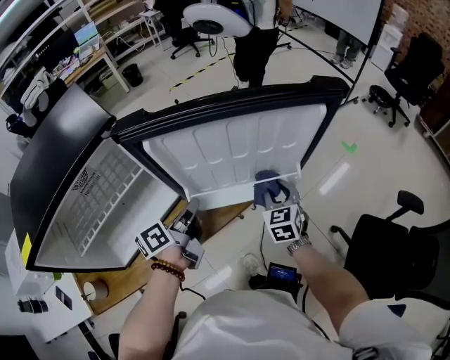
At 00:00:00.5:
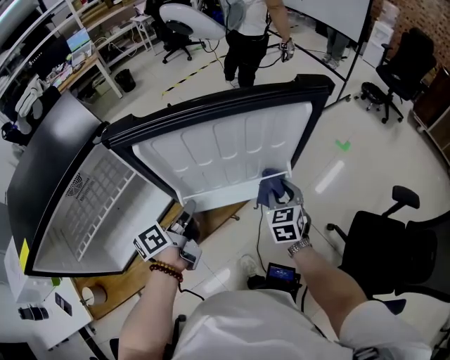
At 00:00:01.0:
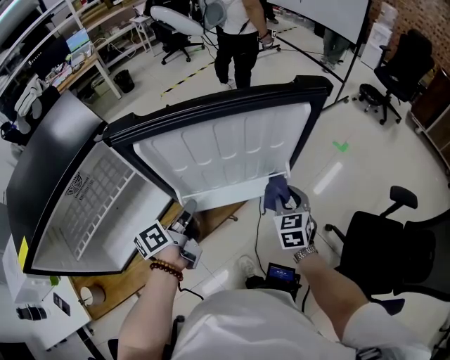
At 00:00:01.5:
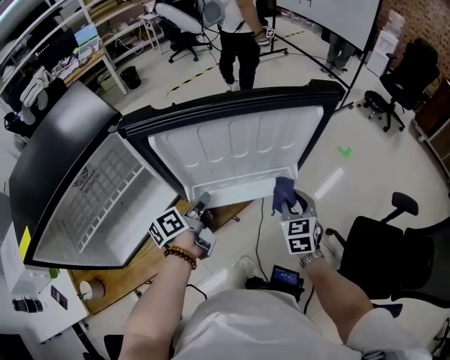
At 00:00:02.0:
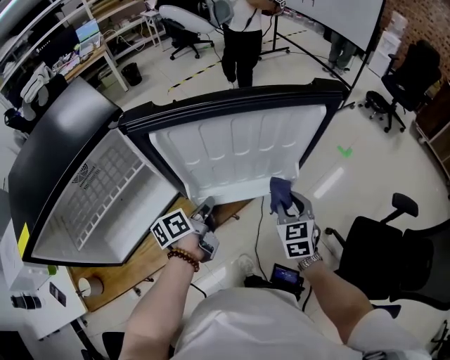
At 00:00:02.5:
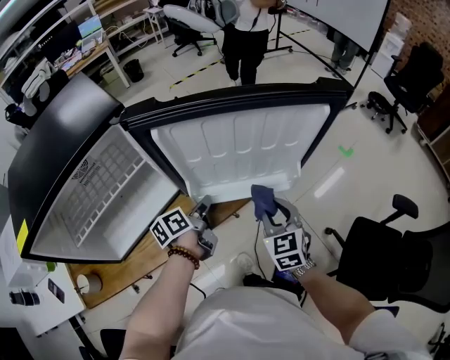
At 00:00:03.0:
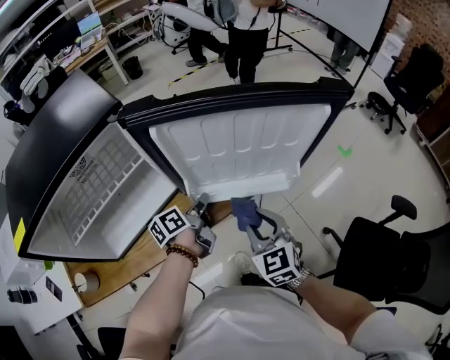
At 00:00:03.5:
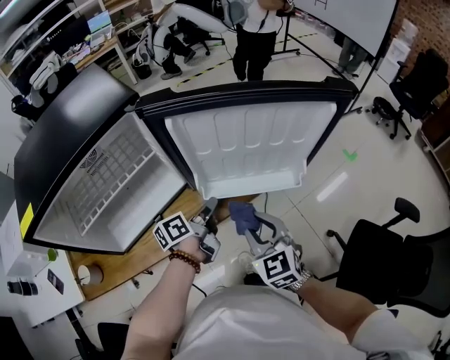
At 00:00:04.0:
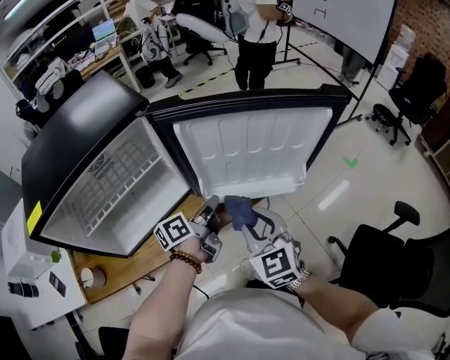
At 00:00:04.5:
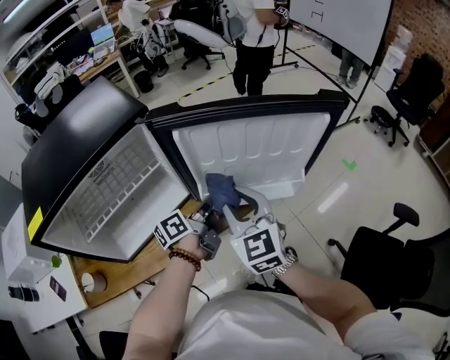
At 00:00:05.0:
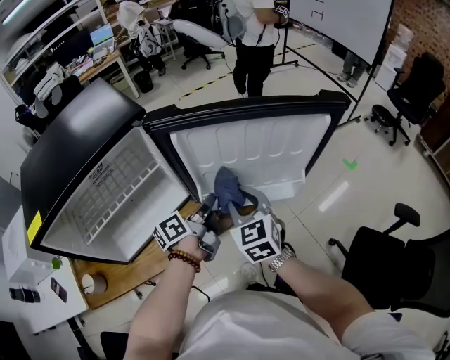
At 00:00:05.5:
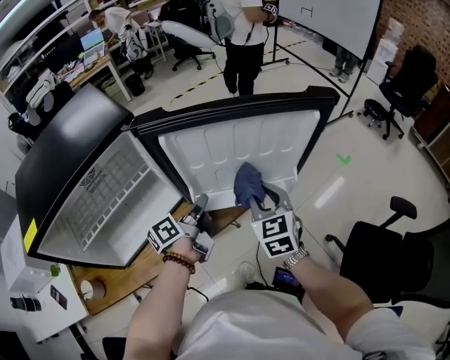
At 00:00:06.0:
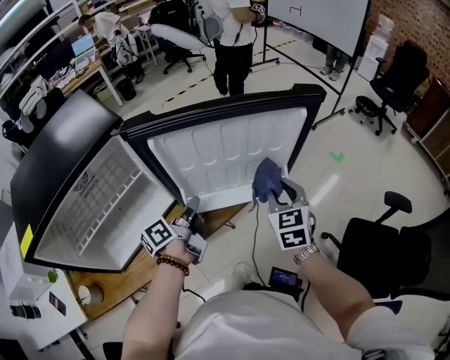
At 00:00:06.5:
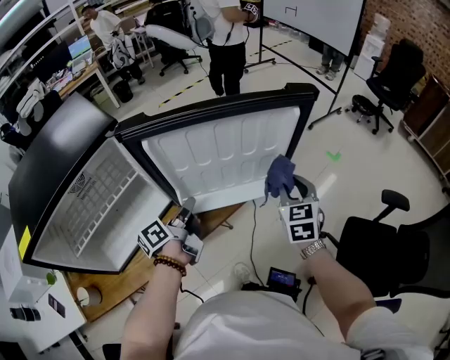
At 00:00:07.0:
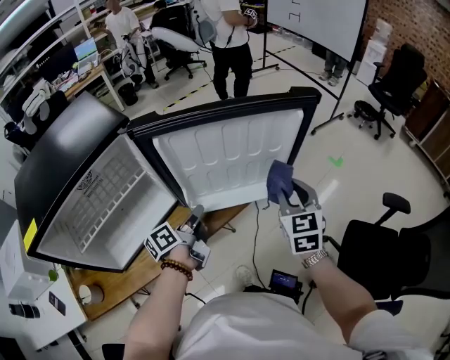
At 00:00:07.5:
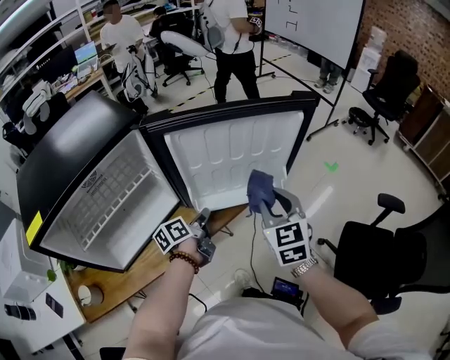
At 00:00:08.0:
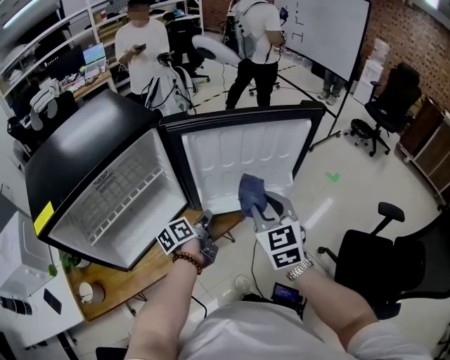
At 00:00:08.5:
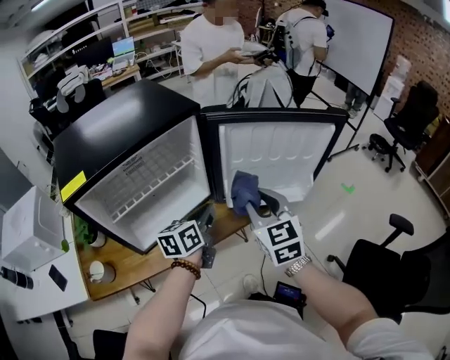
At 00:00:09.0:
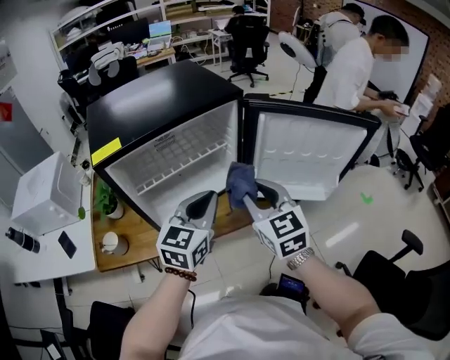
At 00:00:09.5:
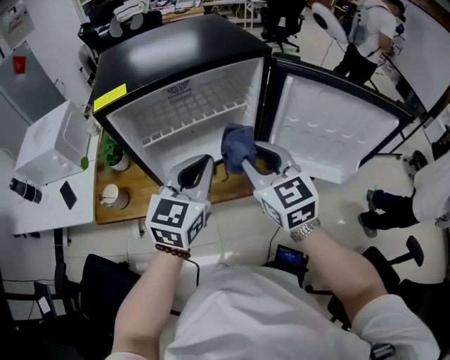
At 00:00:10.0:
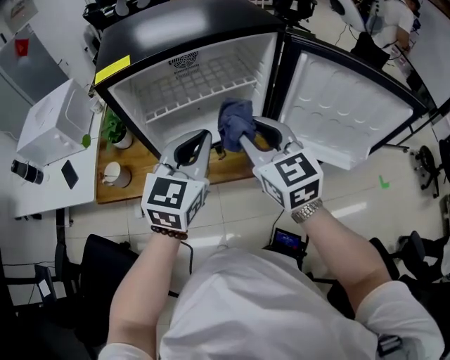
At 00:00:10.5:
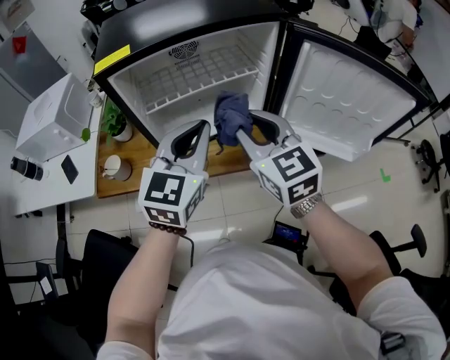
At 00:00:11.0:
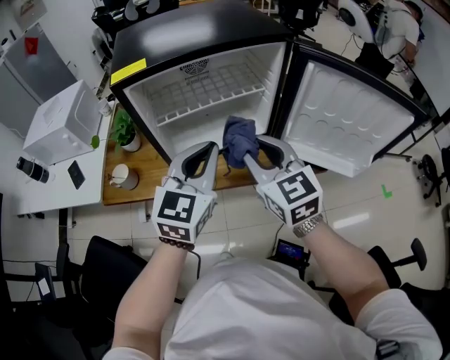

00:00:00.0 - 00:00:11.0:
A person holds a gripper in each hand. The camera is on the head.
00:00:00.0 - 00:00:02.0: The right gripper moves approximately 5 cm, while the left gripper goes some 5 cm downward.
00:00:02.0 - 00:00:03.5: The right gripper heads to the left and backward, covering some 15 cm, and turns by roughly 30 degrees.
00:00:03.5 - 00:00:05.5: The right gripper is displaced forward by roughly 10 cm, while the left gripper shifts about 5 cm upward.
00:00:05.5 - 00:00:07.5: The left gripper shifts approximately 5 cm downward. The right gripper shifts some 5 cm upward, and moves roughly 15 cm to the right and comes back.
00:00:07.5 - 00:00:09.0: The right gripper is displaced to the left by approximately 25 cm, and turns by some 30 degrees. The left gripper shifts some 30 cm upward, backward and to the left, and twists some 60 degrees clockwise, seen from behind.
00:00:09.0 - 00:00:11.0: Both grippers travel together to the left, roughly 5 cm.

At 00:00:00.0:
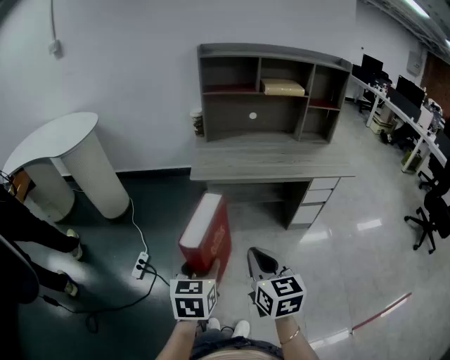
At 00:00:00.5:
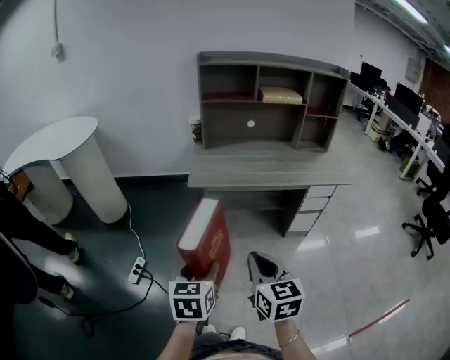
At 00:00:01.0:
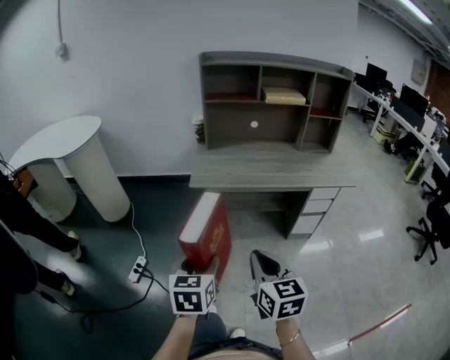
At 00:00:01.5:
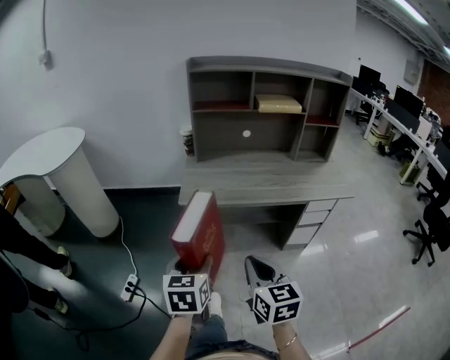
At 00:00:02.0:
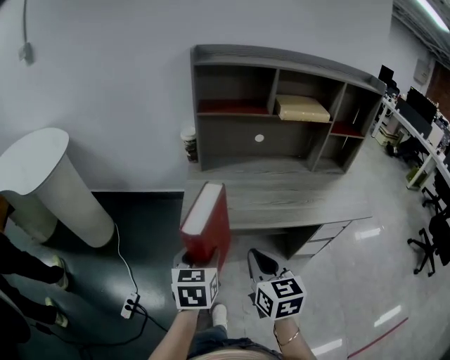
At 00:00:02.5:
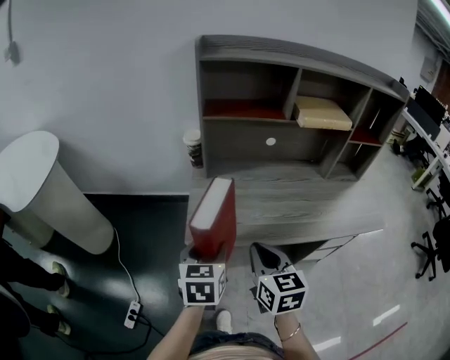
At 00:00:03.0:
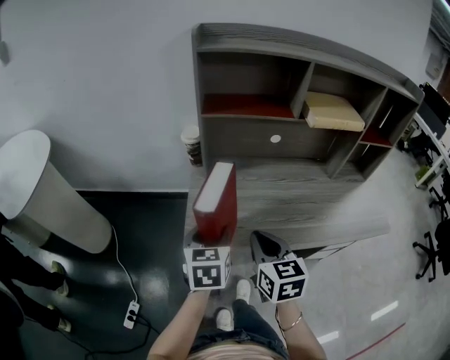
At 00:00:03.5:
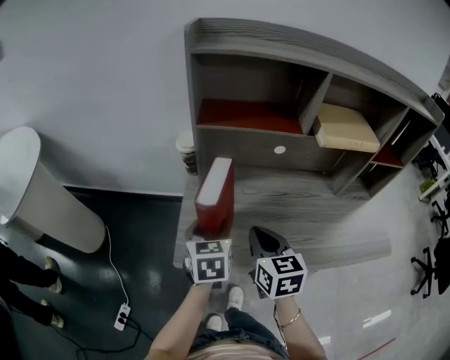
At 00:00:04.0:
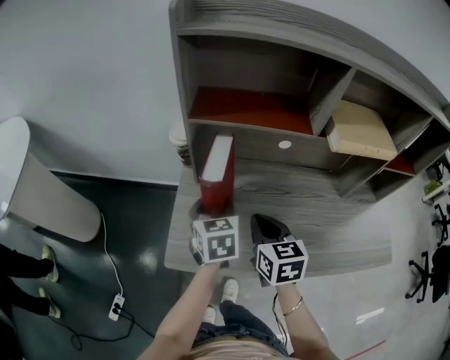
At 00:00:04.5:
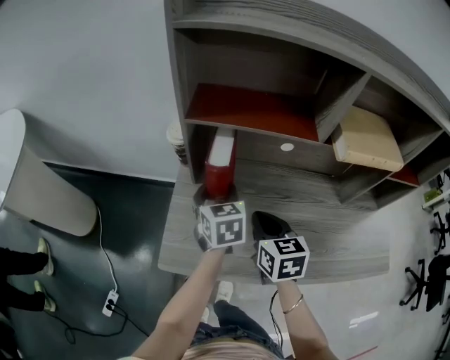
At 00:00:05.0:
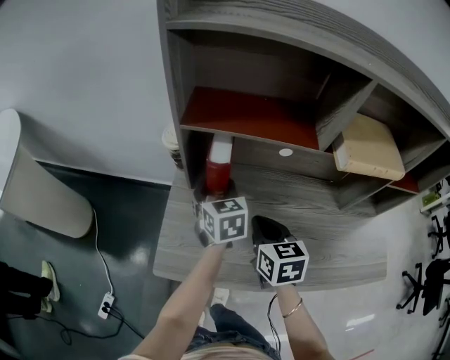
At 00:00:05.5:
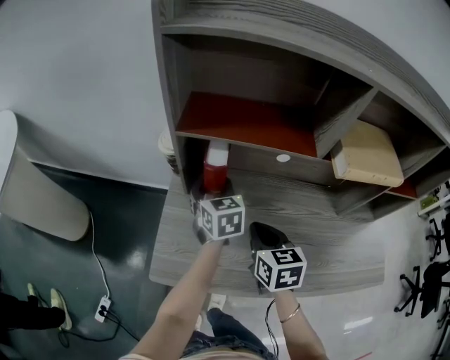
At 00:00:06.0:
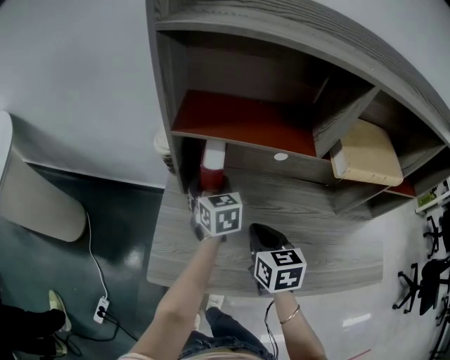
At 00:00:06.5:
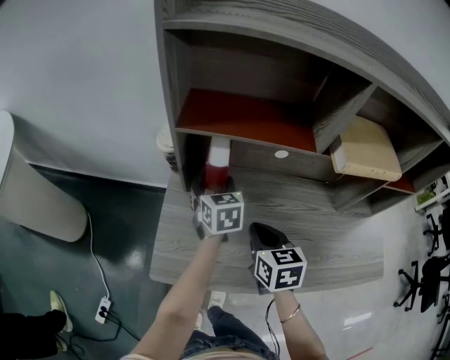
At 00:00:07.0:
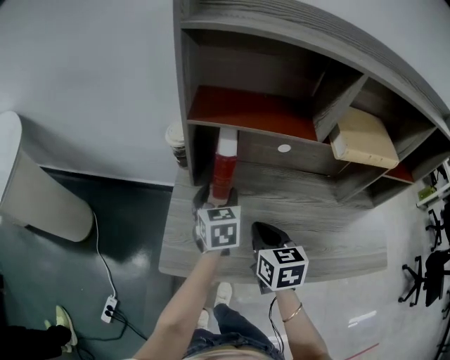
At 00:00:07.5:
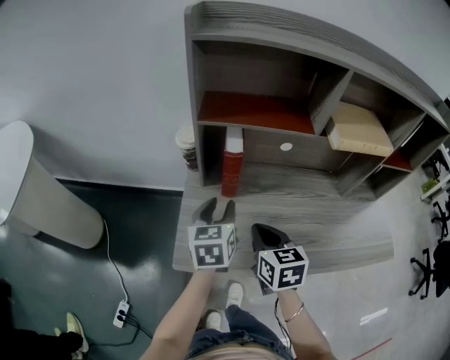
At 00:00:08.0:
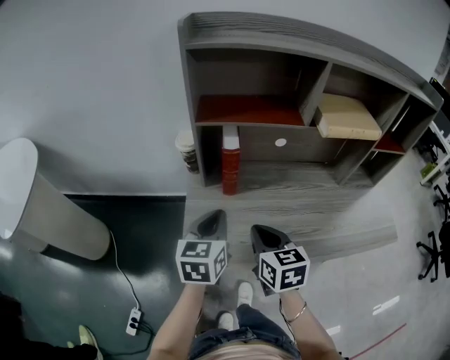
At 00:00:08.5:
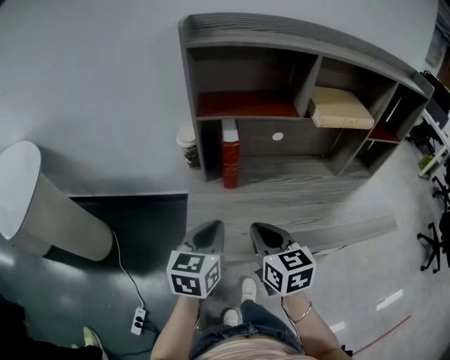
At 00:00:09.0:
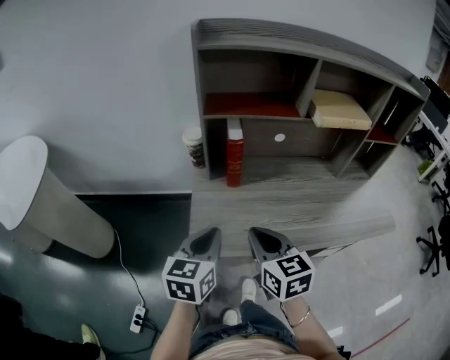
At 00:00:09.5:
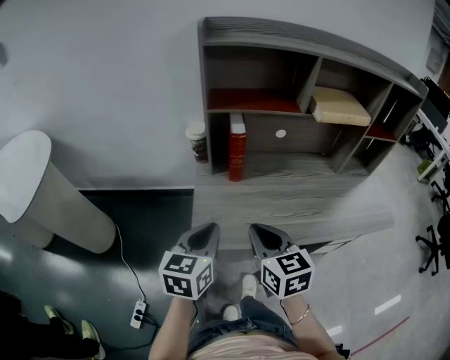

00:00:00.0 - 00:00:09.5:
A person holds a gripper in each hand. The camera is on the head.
00:00:00.0 - 00:00:02.0: The two grippers go about 25 cm forward.
00:00:02.0 - 00:00:04.0: Both grippers move forward, some 30 cm.
00:00:04.0 - 00:00:05.5: The left gripper shifts approximately 10 cm forward; the right gripper moves about 5 cm.
00:00:05.5 - 00:00:07.5: The left gripper goes roughly 10 cm backward; the right gripper is displaced backward and to the left by approximately 10 cm.
00:00:07.5 - 00:00:09.5: The right gripper travels backward, upward and to the left by approximately 15 cm; the left gripper is displaced backward by approximately 15 cm, and closes its fingers.

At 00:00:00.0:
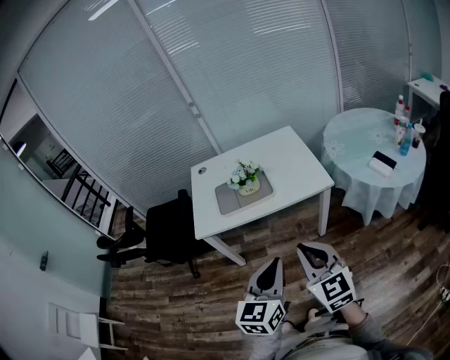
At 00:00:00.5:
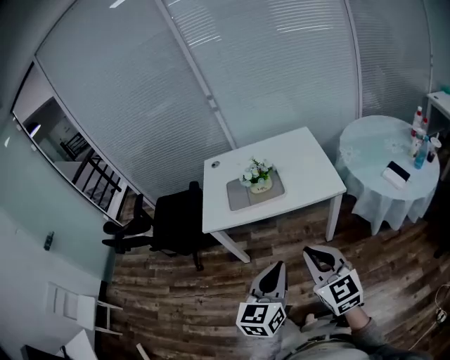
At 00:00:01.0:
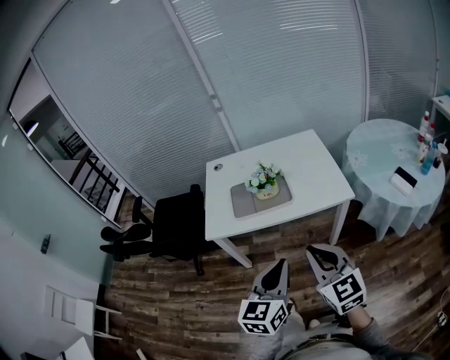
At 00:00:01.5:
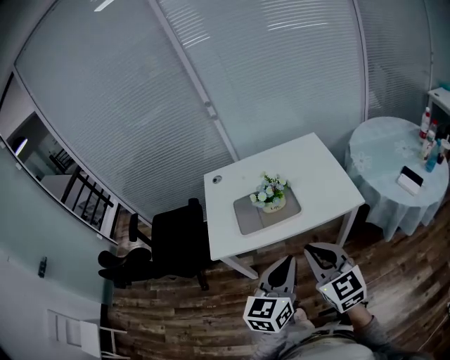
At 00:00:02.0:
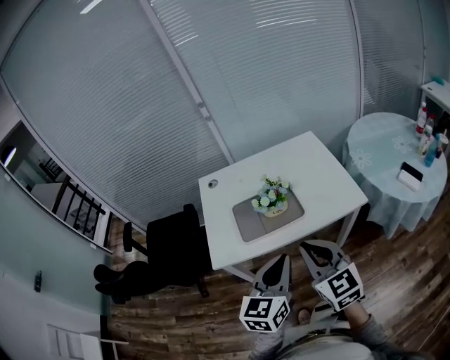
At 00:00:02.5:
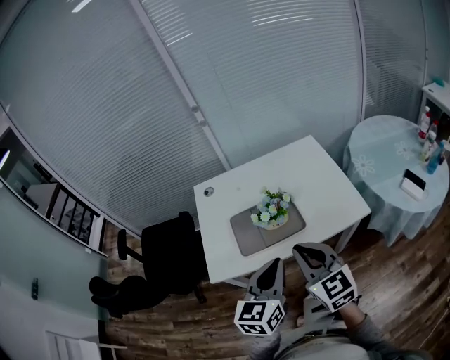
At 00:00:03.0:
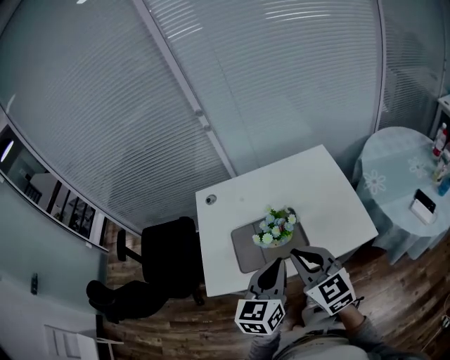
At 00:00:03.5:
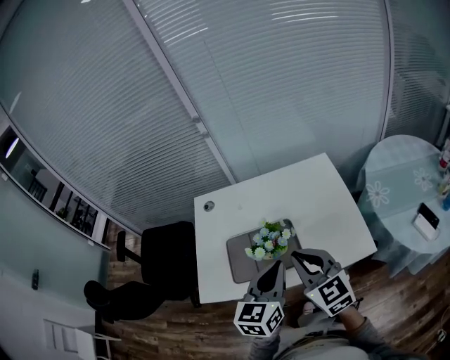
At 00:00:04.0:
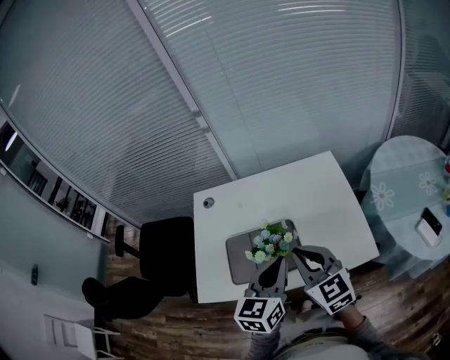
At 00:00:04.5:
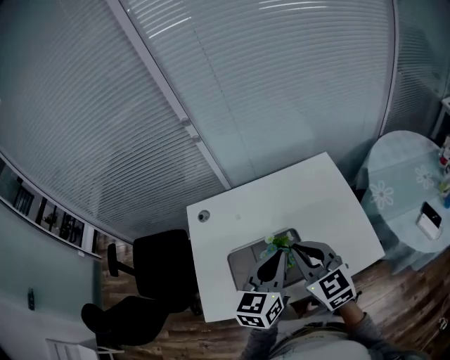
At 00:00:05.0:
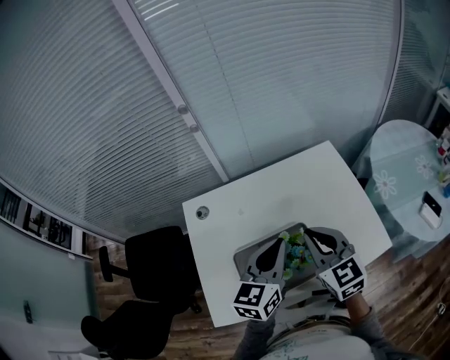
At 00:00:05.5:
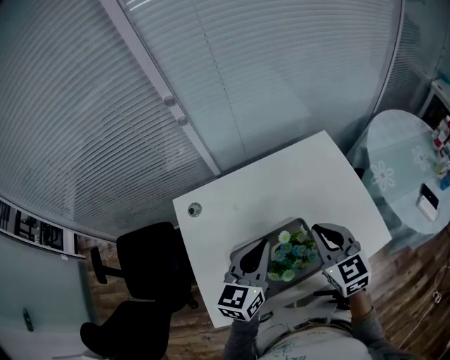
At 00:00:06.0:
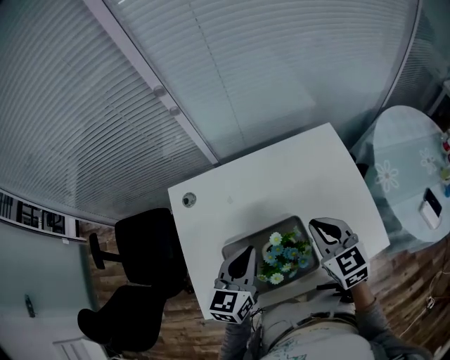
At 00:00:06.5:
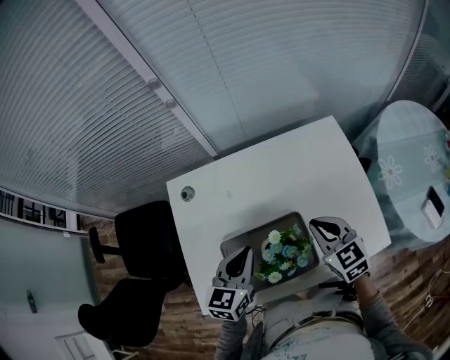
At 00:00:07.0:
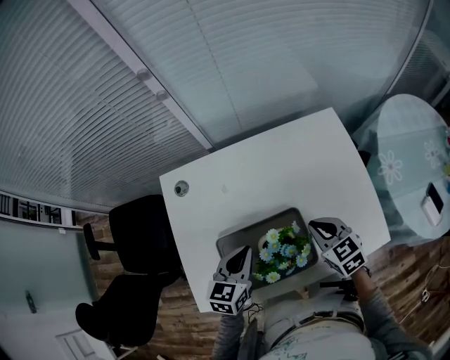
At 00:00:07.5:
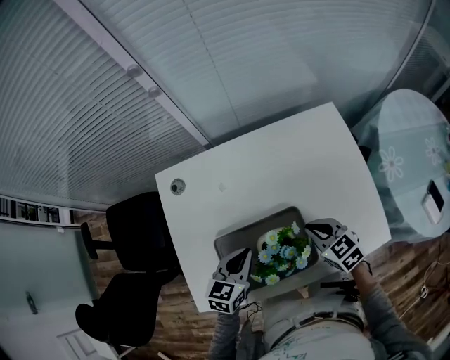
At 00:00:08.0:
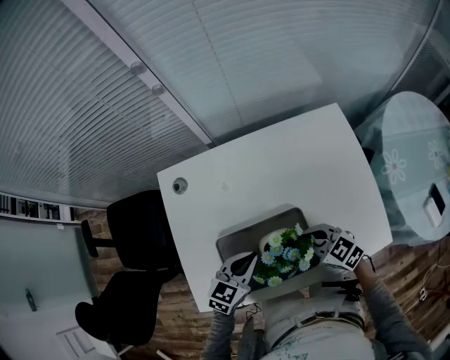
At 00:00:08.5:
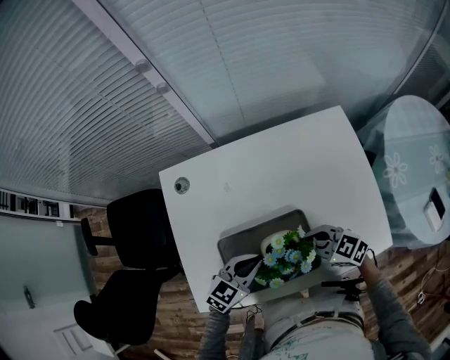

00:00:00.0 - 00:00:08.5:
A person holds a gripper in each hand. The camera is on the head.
00:00:00.0 - 00:00:02.0: Both grippers move forward and to the left, some 25 cm.
00:00:02.0 - 00:00:04.0: The two grippers go roughly 25 cm forward.
00:00:04.0 - 00:00:06.5: The right gripper shifts approximately 20 cm forward and downward, while the left gripper travels to the left, forward and downward by roughly 20 cm.
00:00:06.5 - 00:00:08.5: The two grippers go some 10 cm downward. The right gripper swivels some 40 degrees. The left gripper swivels approximately 30 degrees.
